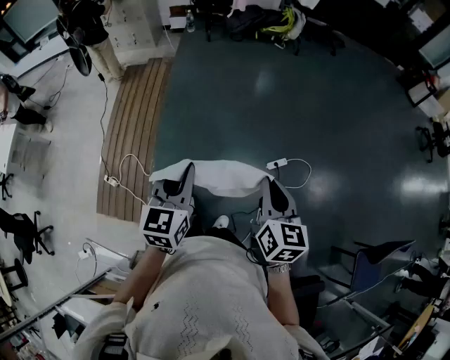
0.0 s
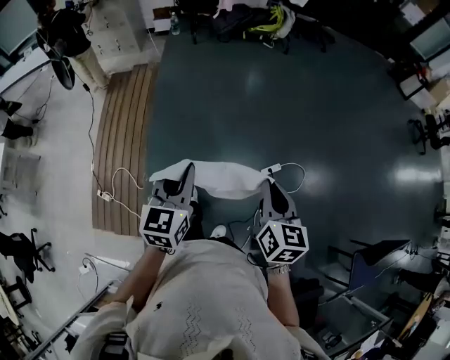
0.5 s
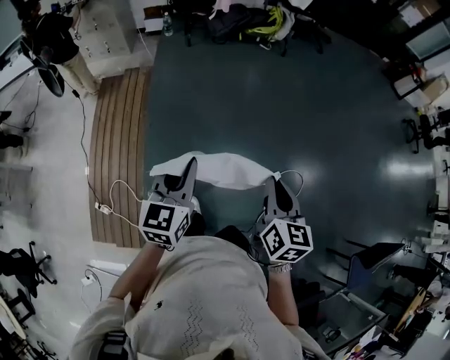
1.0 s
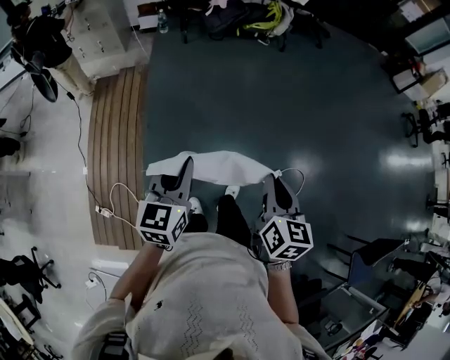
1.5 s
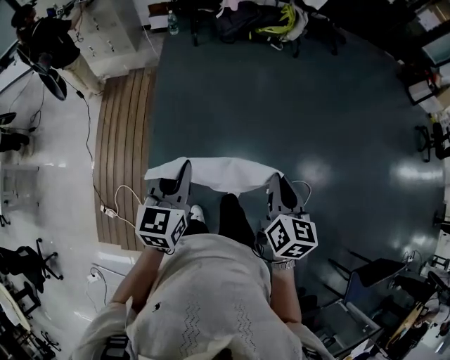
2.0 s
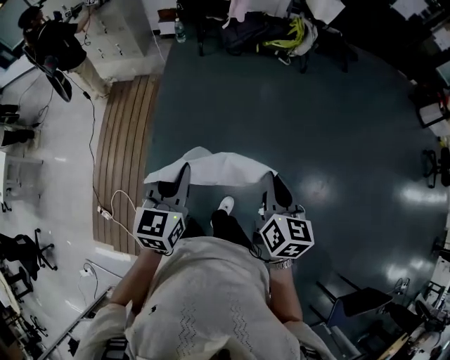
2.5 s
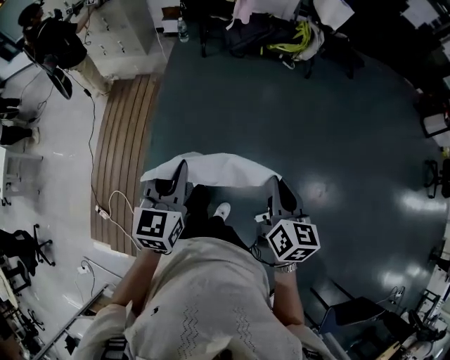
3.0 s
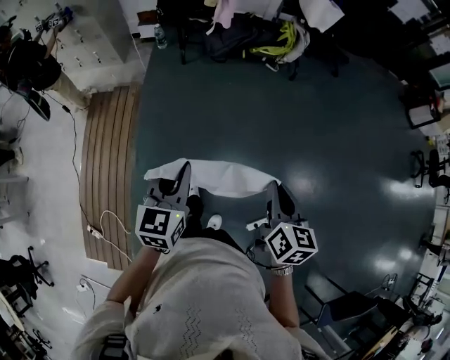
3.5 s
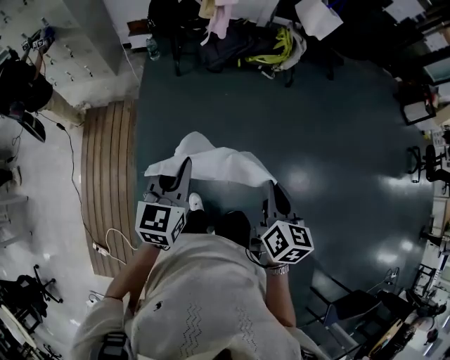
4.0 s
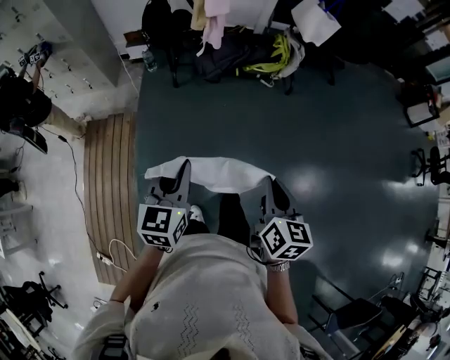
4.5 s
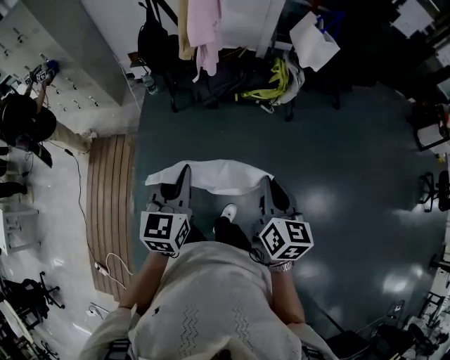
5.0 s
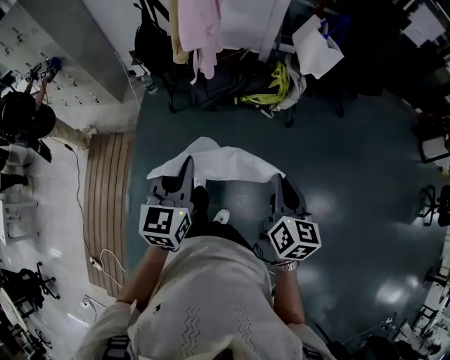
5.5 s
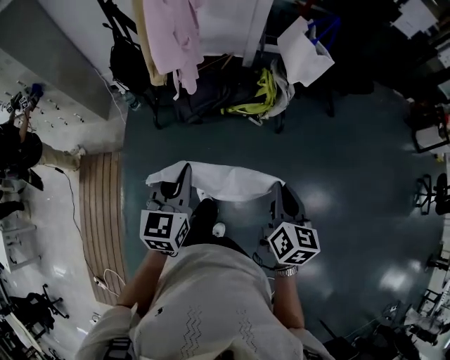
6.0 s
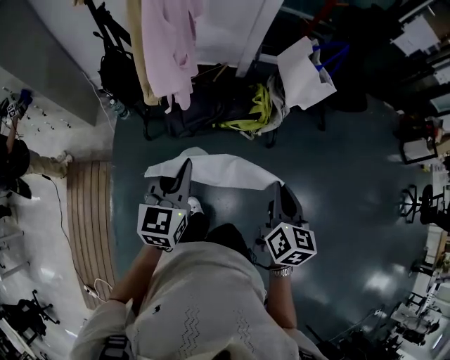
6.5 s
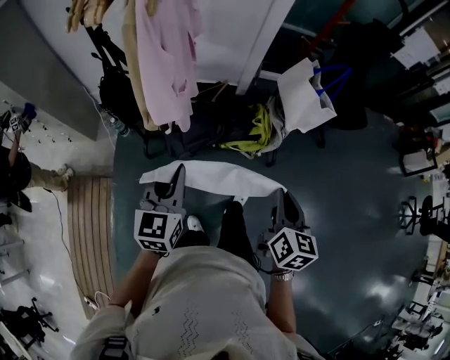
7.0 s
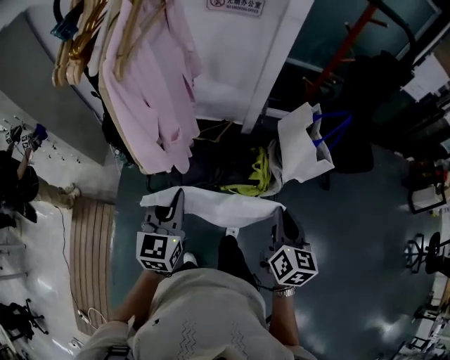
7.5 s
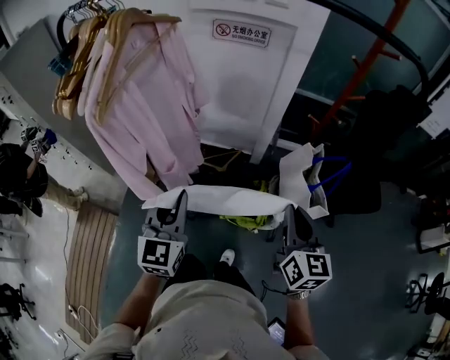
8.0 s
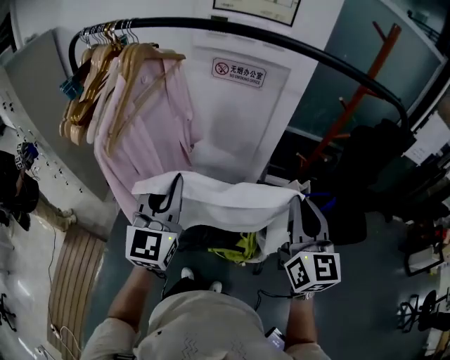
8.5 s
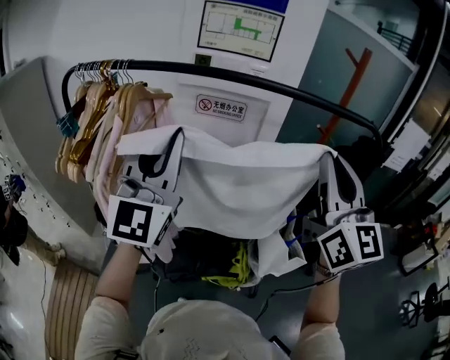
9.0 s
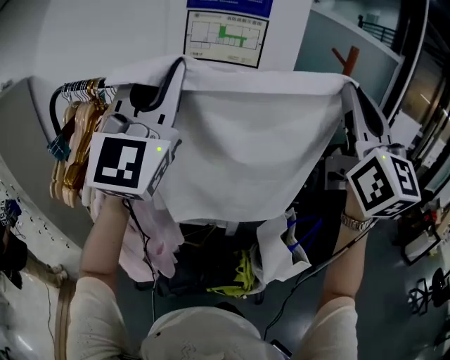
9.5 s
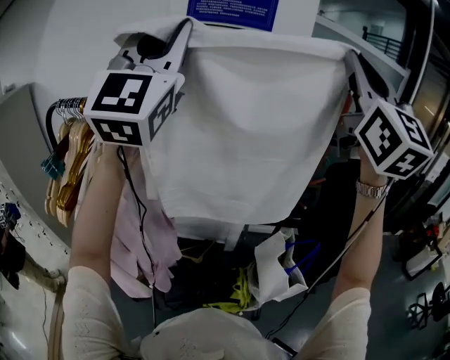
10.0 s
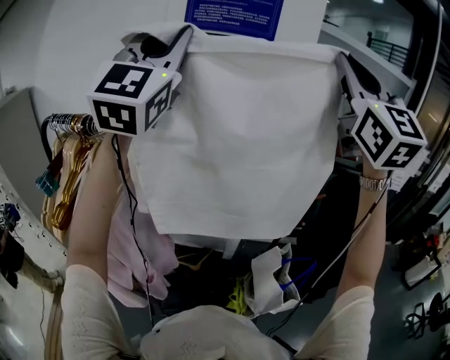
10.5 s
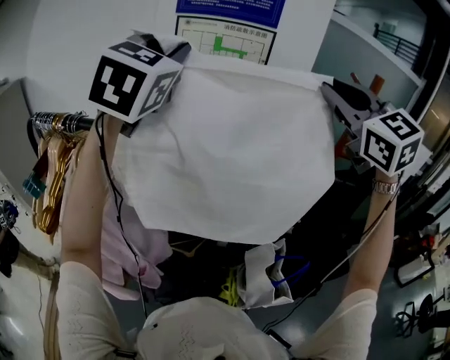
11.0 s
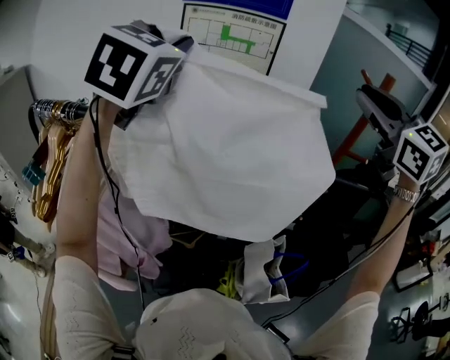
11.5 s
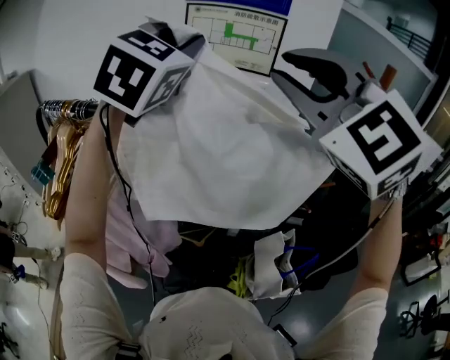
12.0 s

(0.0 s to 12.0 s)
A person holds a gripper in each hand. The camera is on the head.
0.0 s - 2.0 s: Both grippers travel together forward, about 40 cm.
2.0 s - 4.0 s: Both grippers are carried forward, roughly 40 cm.
4.0 s - 6.0 s: The two grippers travel together, forward and to the right, approximately 50 cm.
6.0 s - 8.0 s: The pair of grippers is taken forward, approximately 50 cm. The right gripper turns by roughly 20 degrees.
8.0 s - 10.0 s: The left gripper heads upward and forward, covering some 60 cm, and tilts its fingers roughly 50 degrees upward. The right gripper travels upward by approximately 60 cm, and tips its fingers upward by approximately 40 degrees.
10.0 s - 12.0 s: The left gripper goes about 15 cm forward, and angles its fingers downward, by approximately 40 degrees; the right gripper is displaced to the left, forward and downward by roughly 15 cm, and tilts its fingers roughly 40 degrees downward.

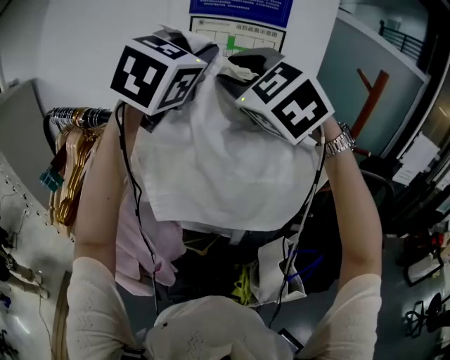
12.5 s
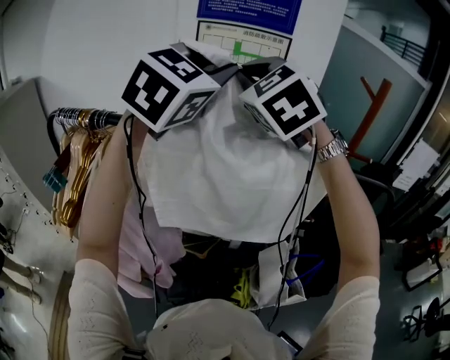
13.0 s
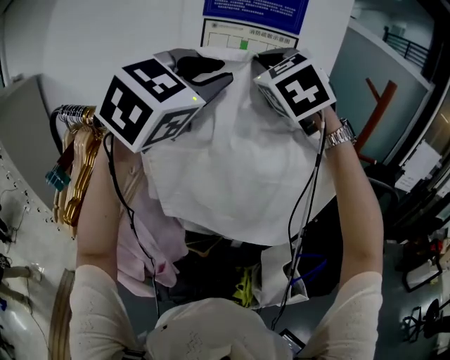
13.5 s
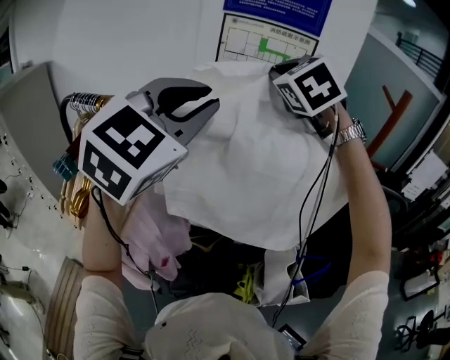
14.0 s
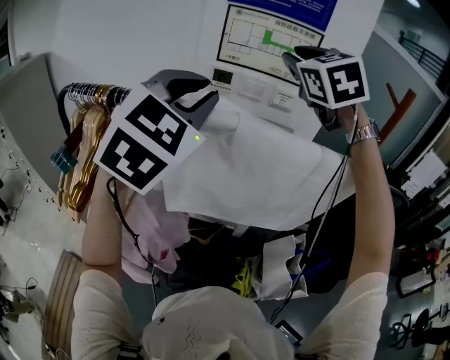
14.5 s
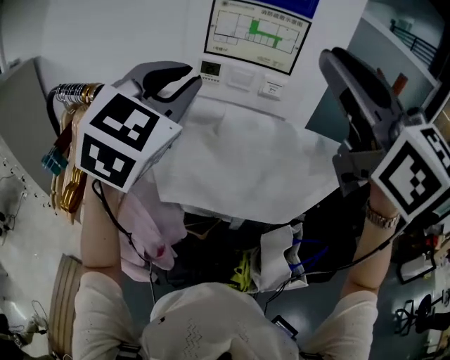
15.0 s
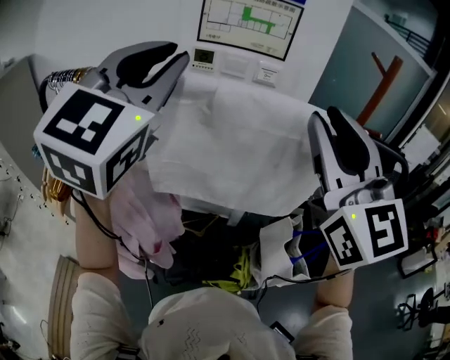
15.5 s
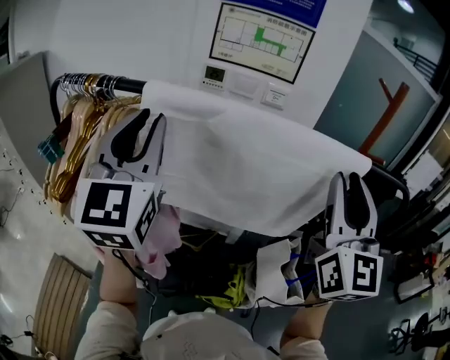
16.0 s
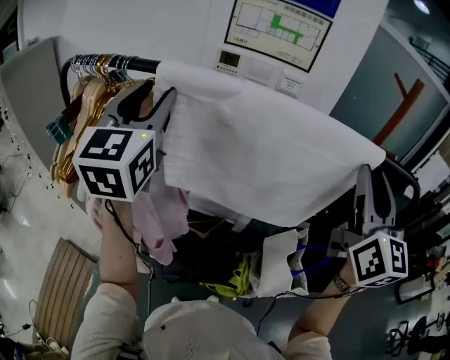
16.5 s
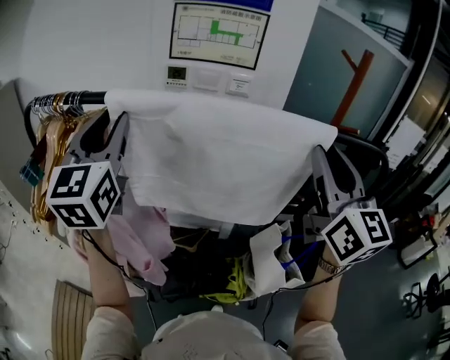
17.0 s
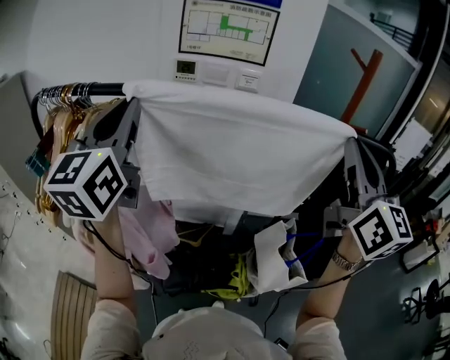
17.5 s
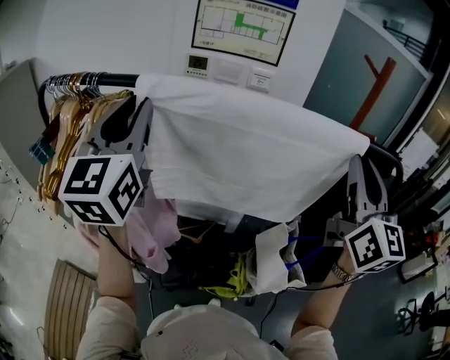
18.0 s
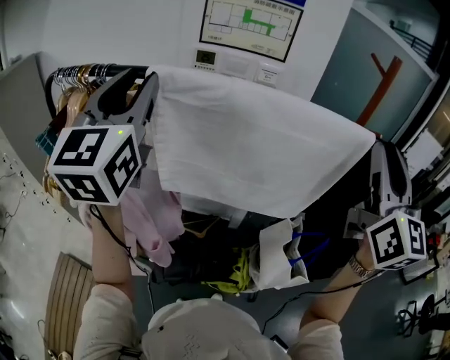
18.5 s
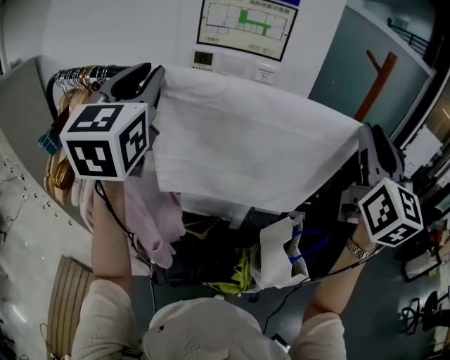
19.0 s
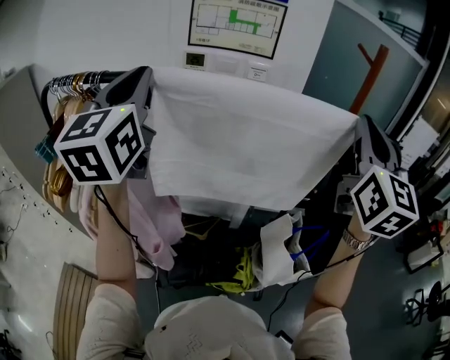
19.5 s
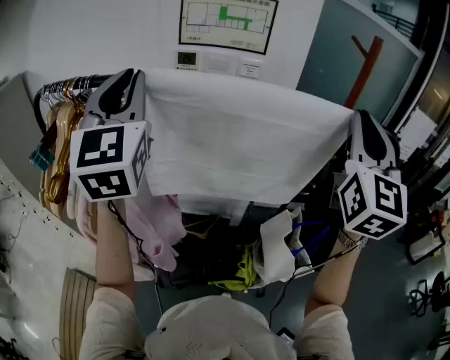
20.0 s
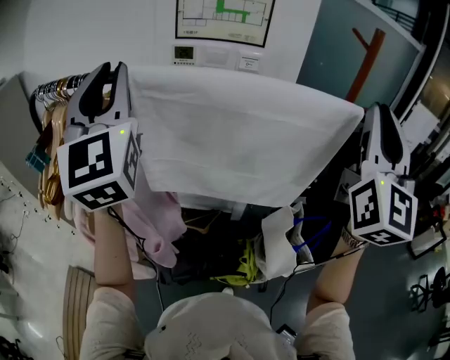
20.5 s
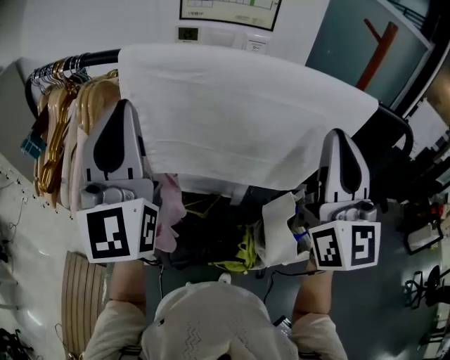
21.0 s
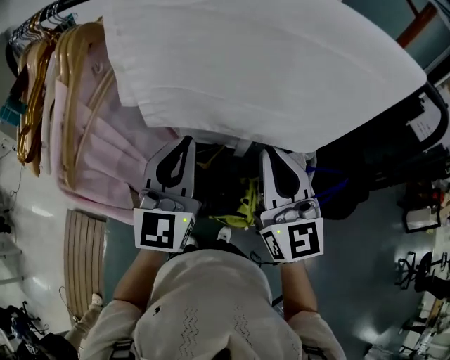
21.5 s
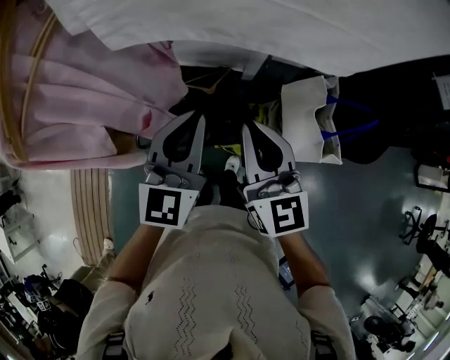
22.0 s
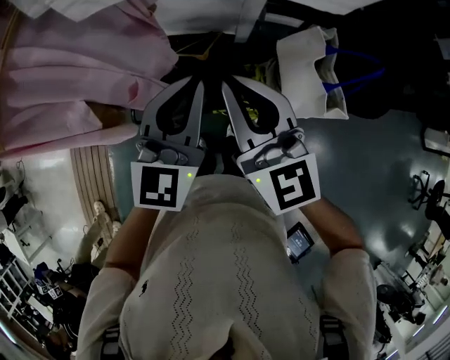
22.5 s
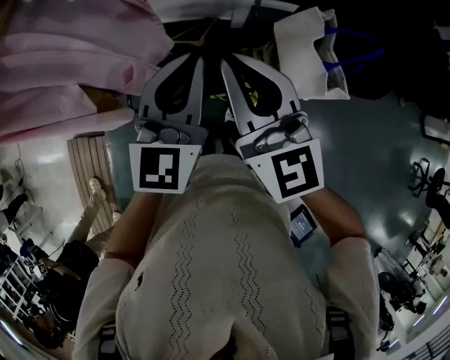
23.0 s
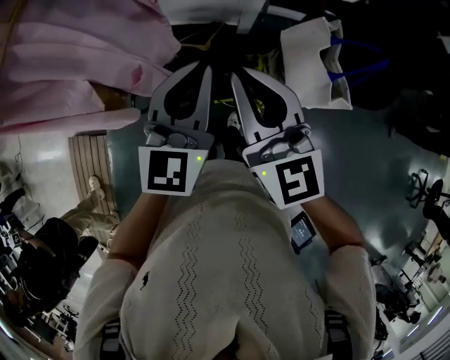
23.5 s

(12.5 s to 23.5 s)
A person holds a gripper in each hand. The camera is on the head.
12.5 s - 14.5 s: The left gripper goes some 15 cm downward, to the left and backward; the right gripper shifts some 10 cm forward, and rotates roughly 20 degrees.
14.5 s - 16.0 s: The right gripper travels backward, to the right and downward by approximately 30 cm, and changes its angle by about 40 degrees. Meanwhile the left gripper travels to the left, downward and backward by some 10 cm, and turns by approximately 40 degrees.
16.0 s - 18.0 s: The left gripper opens and closes again, while the right gripper moves to the right, approximately 5 cm.
18.0 s - 20.0 s: The right gripper changes its angle by some 20 degrees.
20.0 s - 21.5 s: The right gripper heads downward and to the left, covering approximately 30 cm, and changes its angle by some 30 degrees; the left gripper heads downward, covering some 30 cm, and turns by approximately 30 degrees.
21.5 s - 23.5 s: The right gripper goes up and down, some 15 cm each way, reversing 2 times. The left gripper moves downward, backward and to the right, some 20 cm.

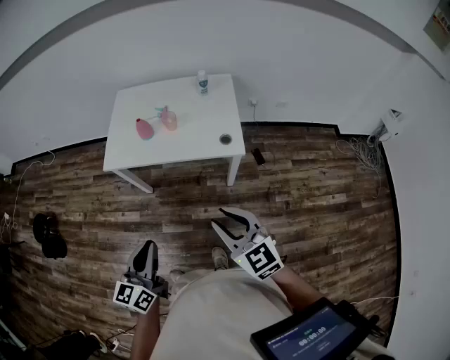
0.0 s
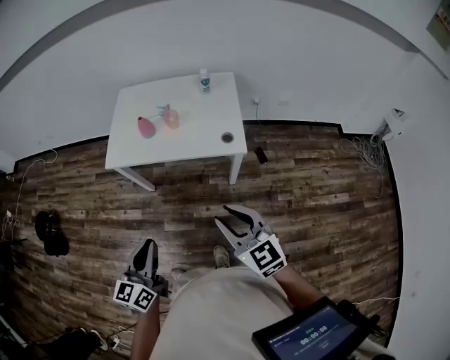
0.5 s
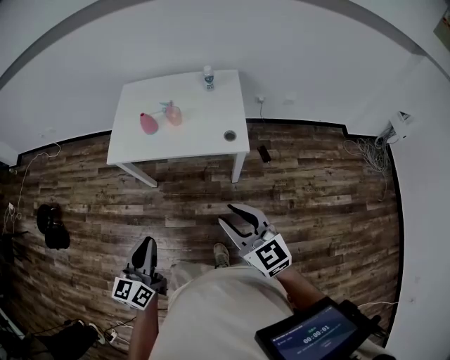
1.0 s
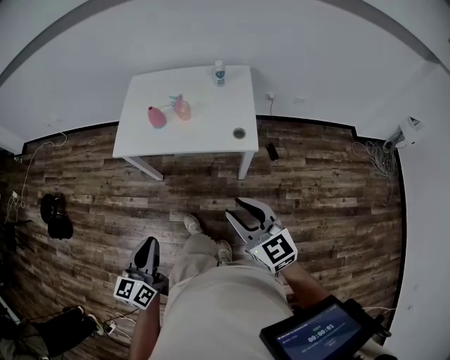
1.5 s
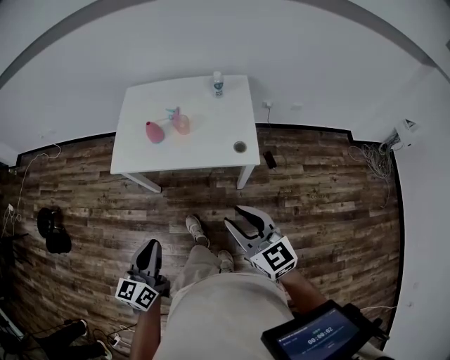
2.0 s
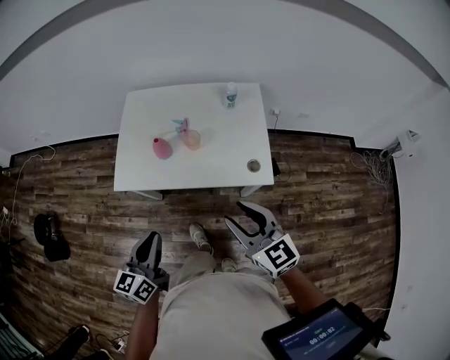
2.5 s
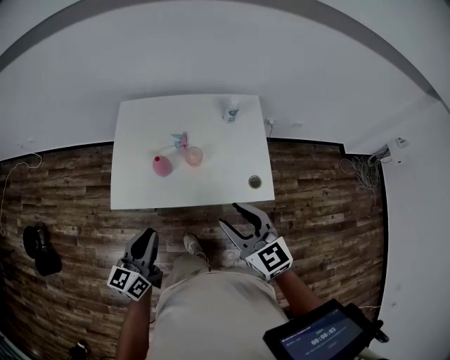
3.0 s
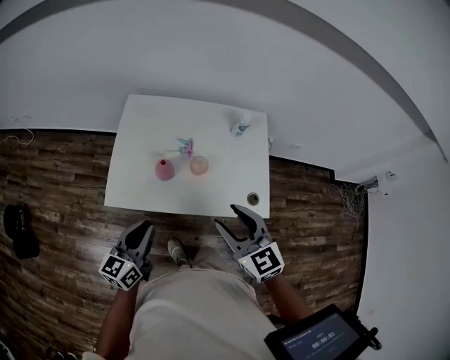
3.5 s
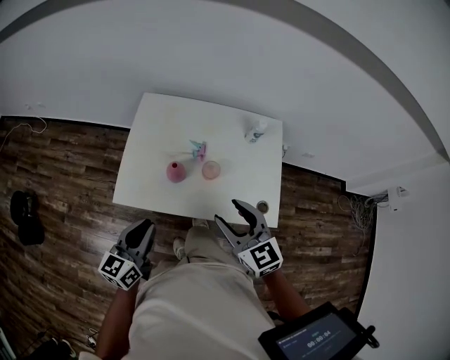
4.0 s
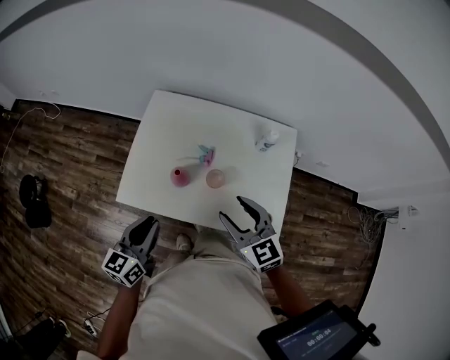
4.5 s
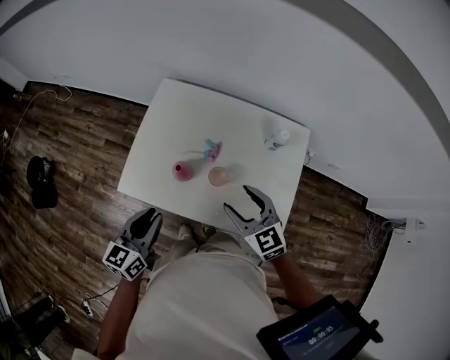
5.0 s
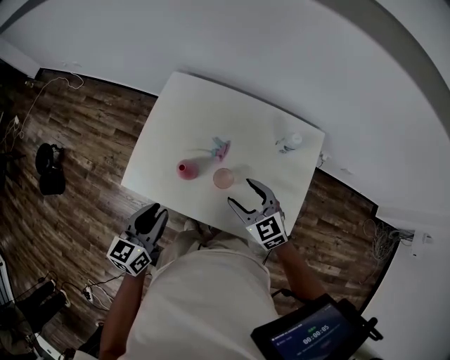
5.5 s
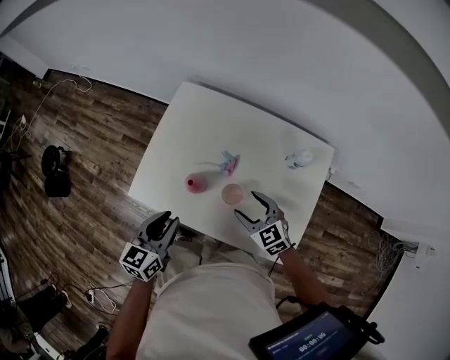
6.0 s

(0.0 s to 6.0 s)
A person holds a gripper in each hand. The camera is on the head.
0.0 s - 2.0 s: Both grippers move forward, some 5 cm.
2.0 s - 4.0 s: The right gripper moves forward and to the left, approximately 35 cm. The left gripper heads forward, covering about 35 cm.
4.0 s - 6.0 s: The left gripper moves forward, to the right and downward, approximately 15 cm; the right gripper shifts some 25 cm downward and forward, and rotates roughly 30 degrees.
